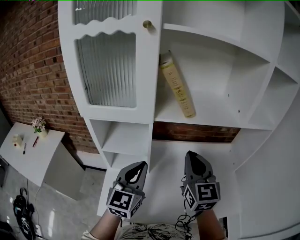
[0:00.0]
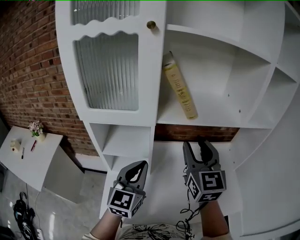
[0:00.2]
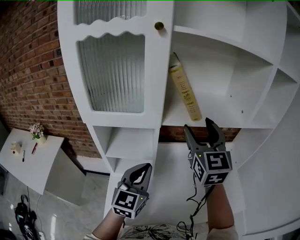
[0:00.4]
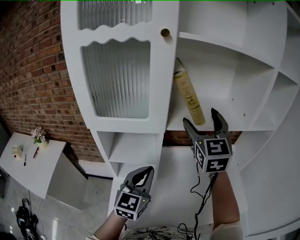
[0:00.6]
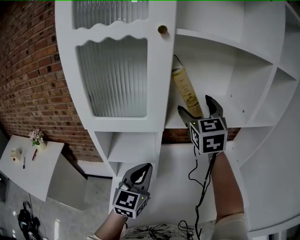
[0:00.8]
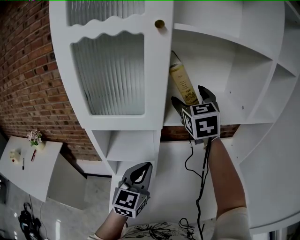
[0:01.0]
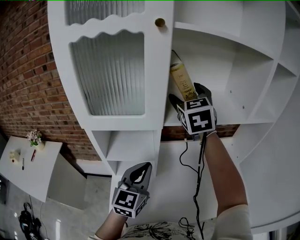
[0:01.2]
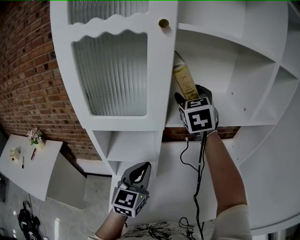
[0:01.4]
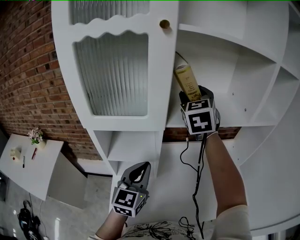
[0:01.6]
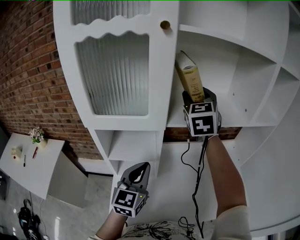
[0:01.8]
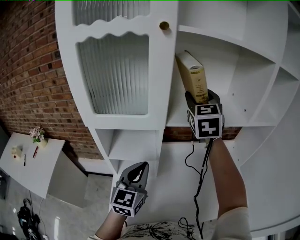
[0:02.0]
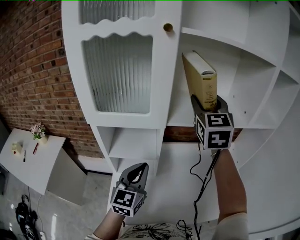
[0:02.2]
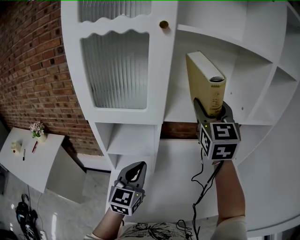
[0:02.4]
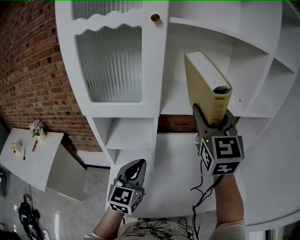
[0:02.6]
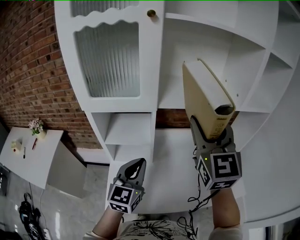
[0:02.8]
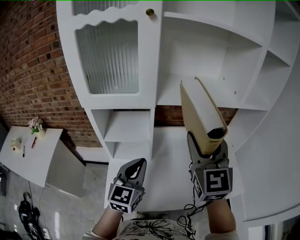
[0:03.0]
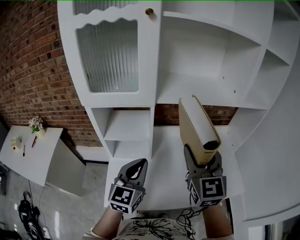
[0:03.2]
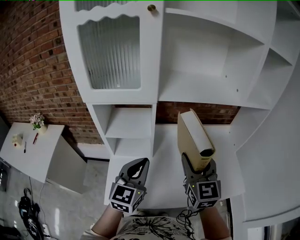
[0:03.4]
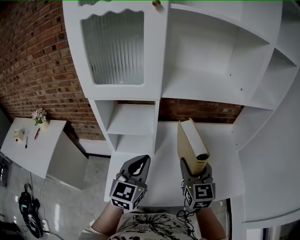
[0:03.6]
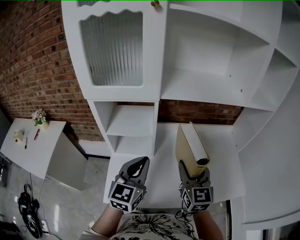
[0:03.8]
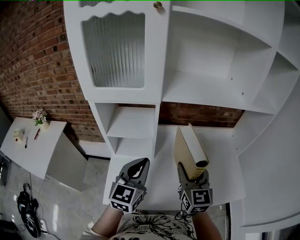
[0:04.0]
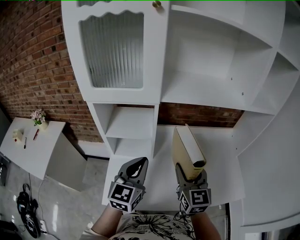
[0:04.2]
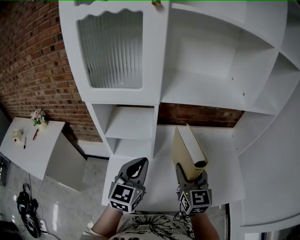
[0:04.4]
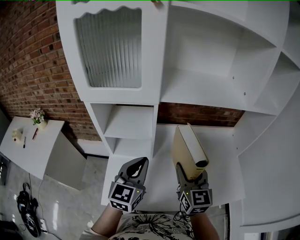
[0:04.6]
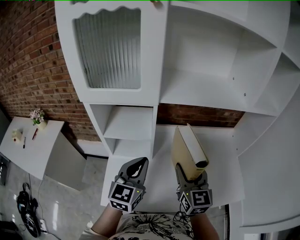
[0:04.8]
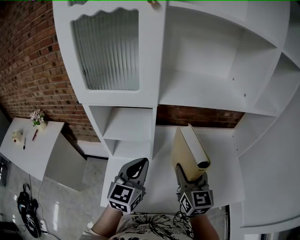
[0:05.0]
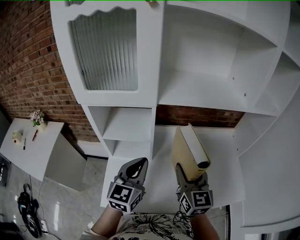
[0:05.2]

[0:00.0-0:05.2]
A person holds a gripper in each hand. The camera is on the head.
0:00.0 to 0:01.8: The left gripper ends up some 5 cm from where it was. Meanwhile the right gripper heads forward and upward, covering roughly 25 cm, rotates approximately 20 degrees, and opens.
0:01.8 to 0:03.4: The left gripper shifts about 10 cm backward, while the right gripper moves backward and downward, approximately 30 cm.
0:03.4 to 0:05.2: The right gripper travels downward by some 5 cm.

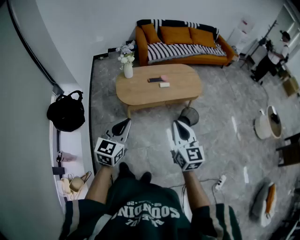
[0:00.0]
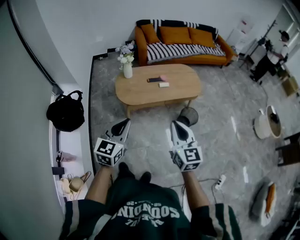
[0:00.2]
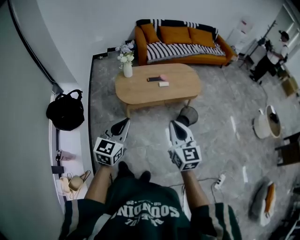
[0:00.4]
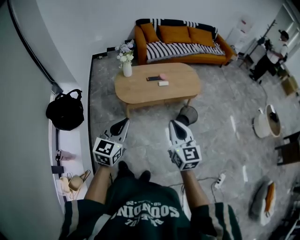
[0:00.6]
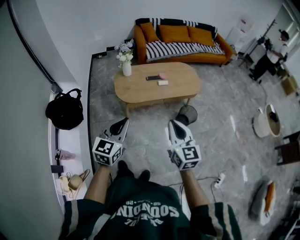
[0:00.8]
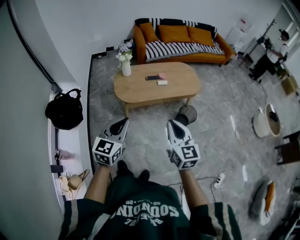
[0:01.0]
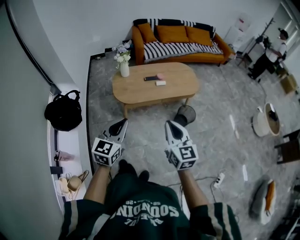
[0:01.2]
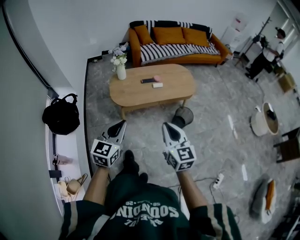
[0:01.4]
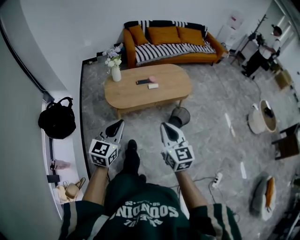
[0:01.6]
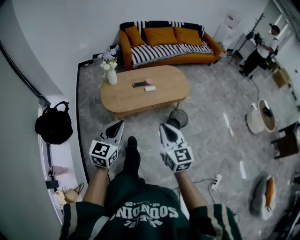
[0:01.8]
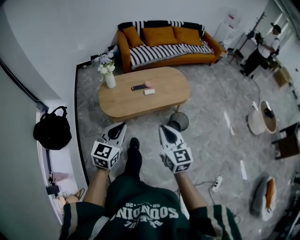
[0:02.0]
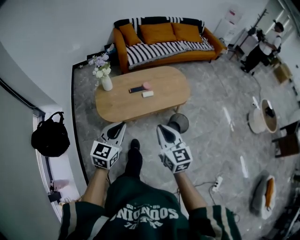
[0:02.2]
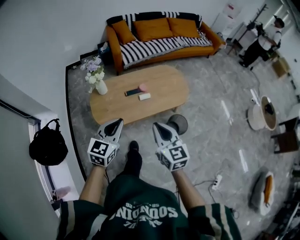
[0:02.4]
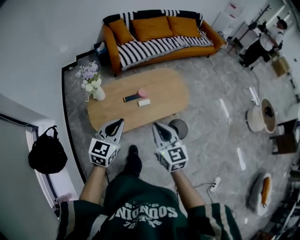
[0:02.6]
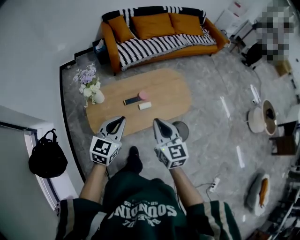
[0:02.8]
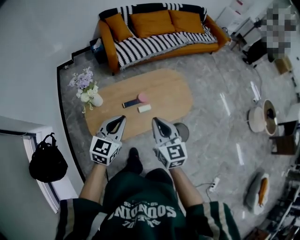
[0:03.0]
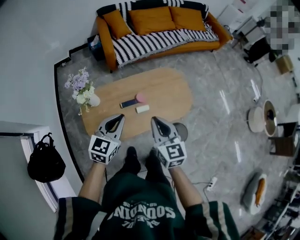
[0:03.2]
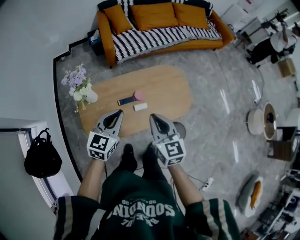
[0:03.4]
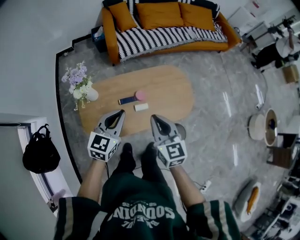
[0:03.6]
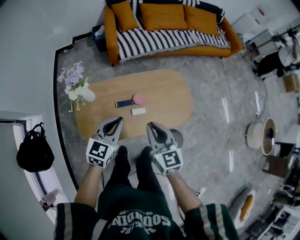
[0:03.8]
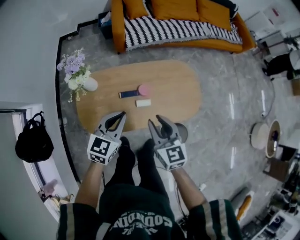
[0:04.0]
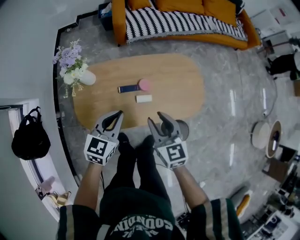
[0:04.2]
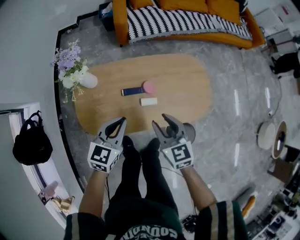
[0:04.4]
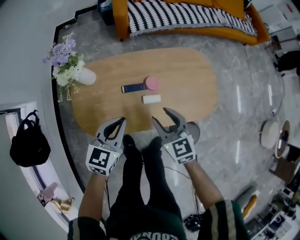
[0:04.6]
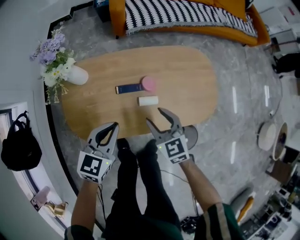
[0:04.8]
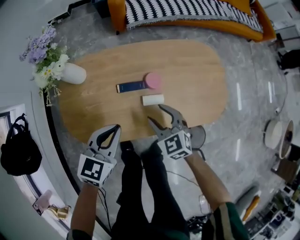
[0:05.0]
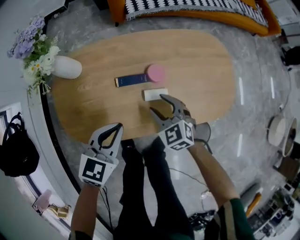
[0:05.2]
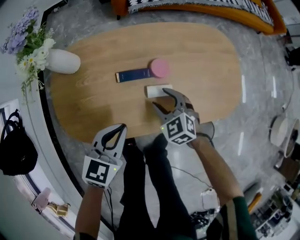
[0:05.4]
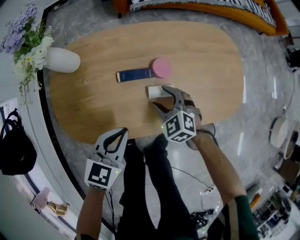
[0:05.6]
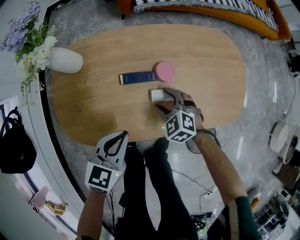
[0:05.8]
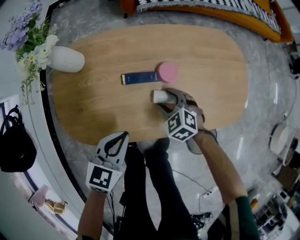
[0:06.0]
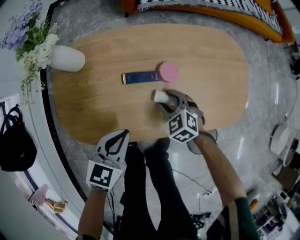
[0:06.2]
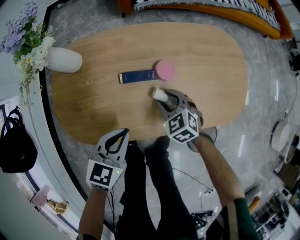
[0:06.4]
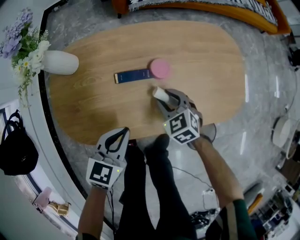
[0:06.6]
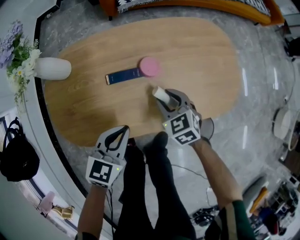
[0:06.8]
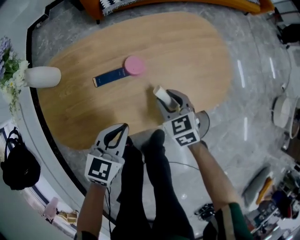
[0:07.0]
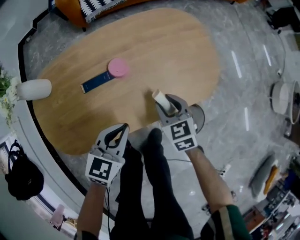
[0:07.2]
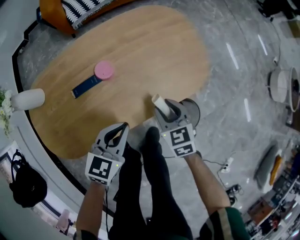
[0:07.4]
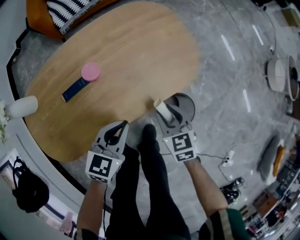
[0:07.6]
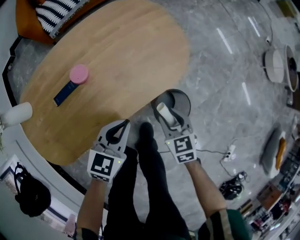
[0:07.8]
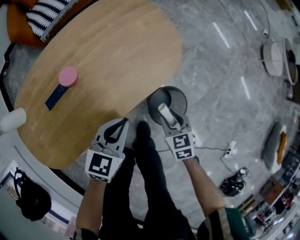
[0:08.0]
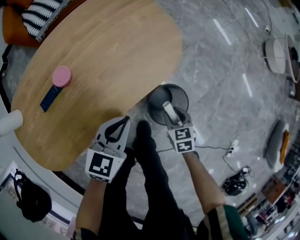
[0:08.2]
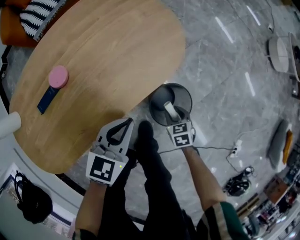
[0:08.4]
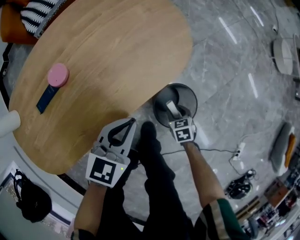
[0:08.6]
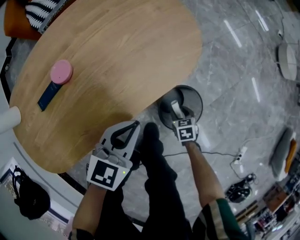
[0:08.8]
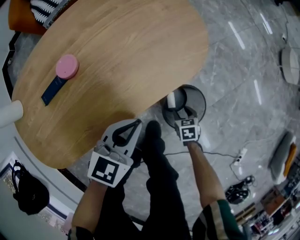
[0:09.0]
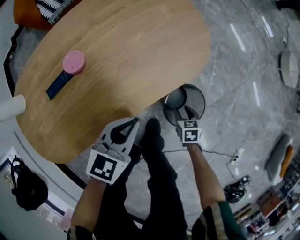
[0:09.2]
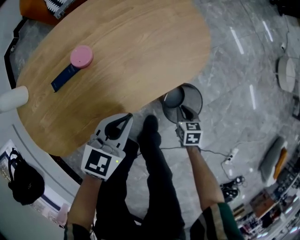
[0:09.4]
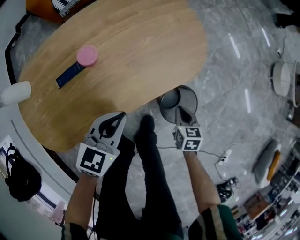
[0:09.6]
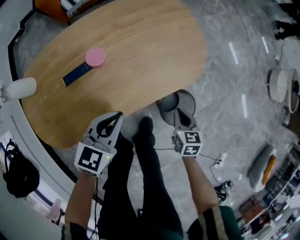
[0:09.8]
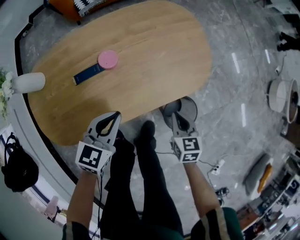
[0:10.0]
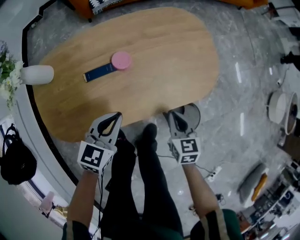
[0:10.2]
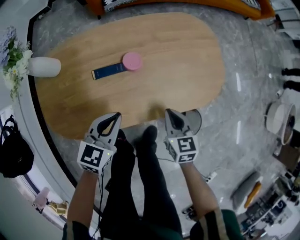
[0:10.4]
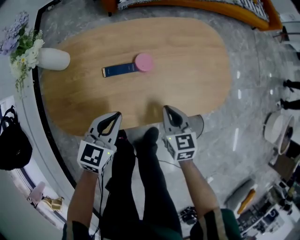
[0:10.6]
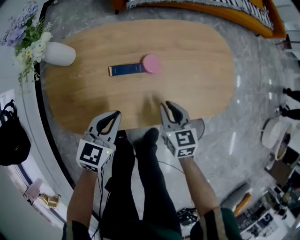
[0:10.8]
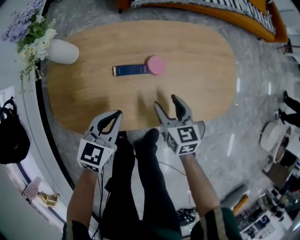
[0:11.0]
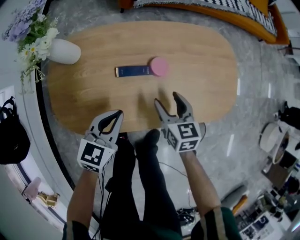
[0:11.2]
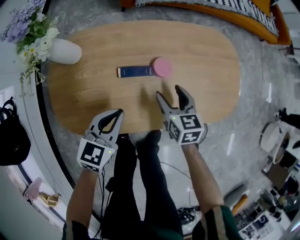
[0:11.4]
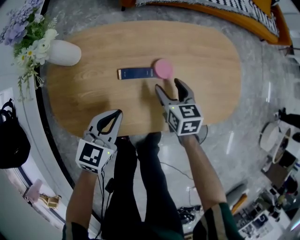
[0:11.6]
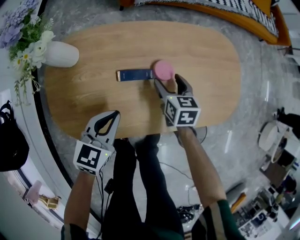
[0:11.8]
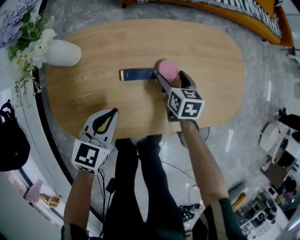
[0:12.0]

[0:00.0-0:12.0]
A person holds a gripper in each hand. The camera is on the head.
0:00.0 to 0:01.6: The grippers move only a little.
0:01.6 to 0:03.0: Both grippers are carried forward, roughly 50 cm.
0:03.0 to 0:04.4: The left gripper travels downward by some 20 cm; the right gripper is displaced downward and forward by roughly 20 cm, turns by about 20 degrees, and opens up.
0:04.4 to 0:06.0: The right gripper moves downward, some 35 cm, and swivels some 40 degrees. Meanwhile the left gripper heads downward, covering approximately 20 cm.
0:06.0 to 0:07.6: The right gripper ends up about 25 cm from where it was, and rolls clockwise, seen from behind, by some 50 degrees, while the left gripper changes place by roughly 20 cm, and rotates approximately 30 degrees.
0:07.6 to 0:09.0: The right gripper travels downward and to the right by about 35 cm, and changes its angle by some 30 degrees, while the left gripper heads to the right and downward, covering roughly 10 cm.
0:09.0 to 0:10.4: The left gripper changes place by some 25 cm, and turns by some 30 degrees. The right gripper shifts about 30 cm upward, swivels some 30 degrees, and closes its fingers.
0:10.4 to 0:12.0: The left gripper goes approximately 15 cm to the left; the right gripper is displaced forward, to the left and downward by approximately 25 cm, and opens up.

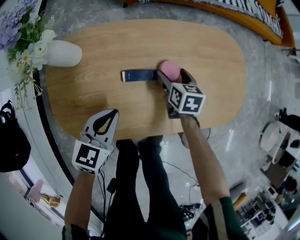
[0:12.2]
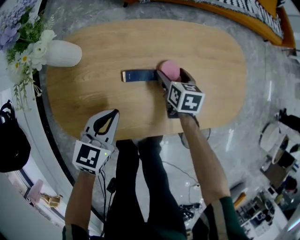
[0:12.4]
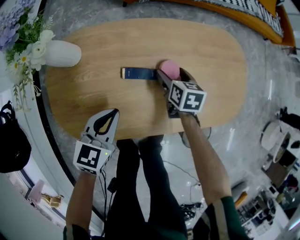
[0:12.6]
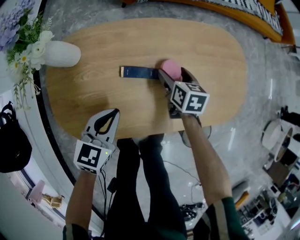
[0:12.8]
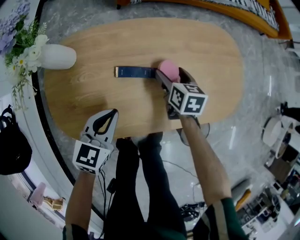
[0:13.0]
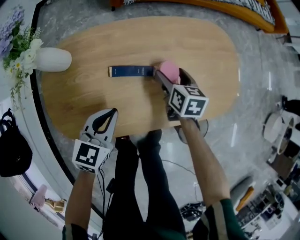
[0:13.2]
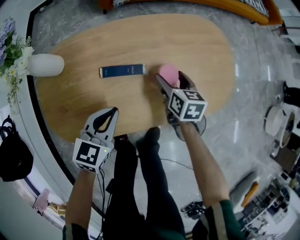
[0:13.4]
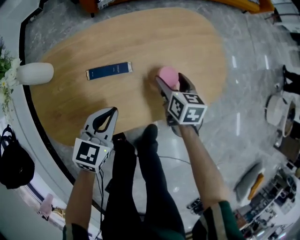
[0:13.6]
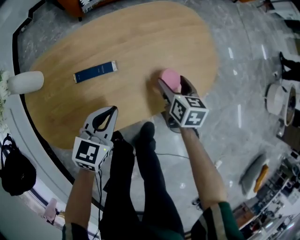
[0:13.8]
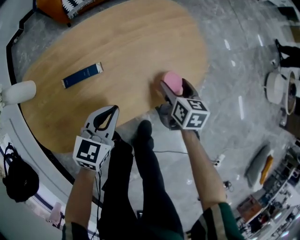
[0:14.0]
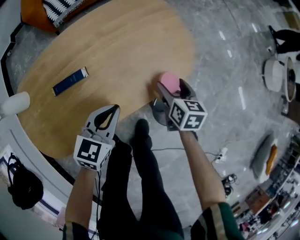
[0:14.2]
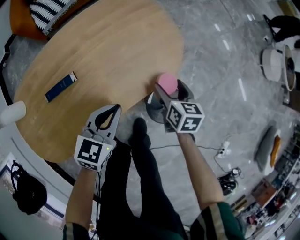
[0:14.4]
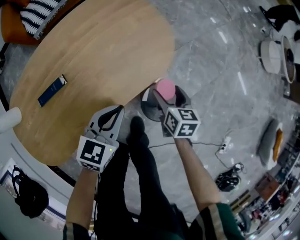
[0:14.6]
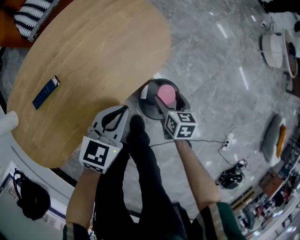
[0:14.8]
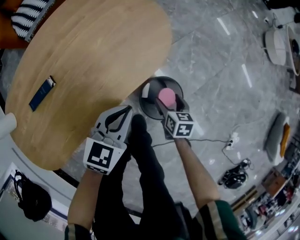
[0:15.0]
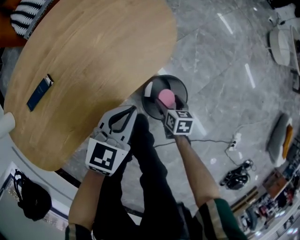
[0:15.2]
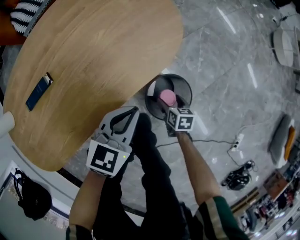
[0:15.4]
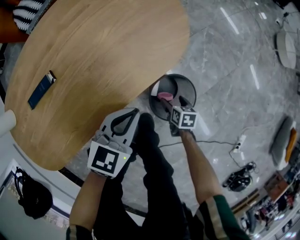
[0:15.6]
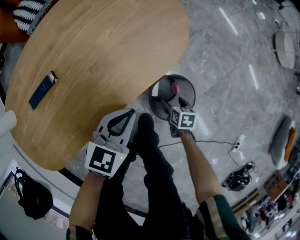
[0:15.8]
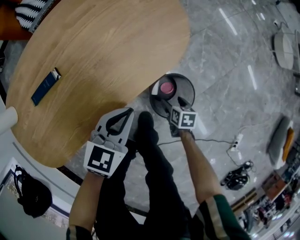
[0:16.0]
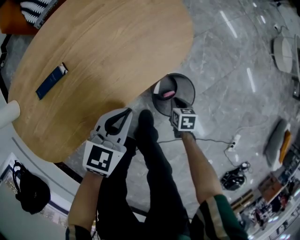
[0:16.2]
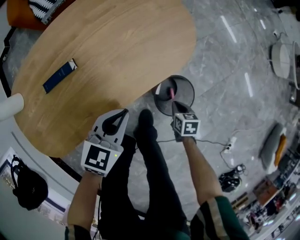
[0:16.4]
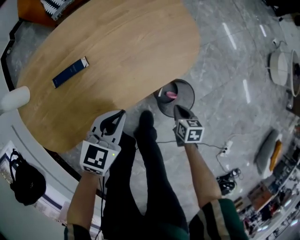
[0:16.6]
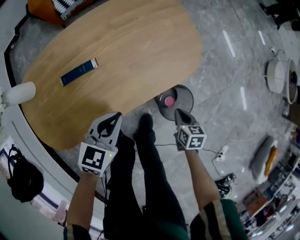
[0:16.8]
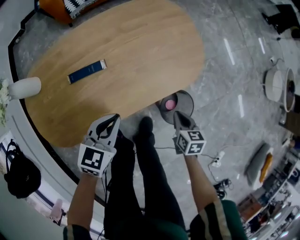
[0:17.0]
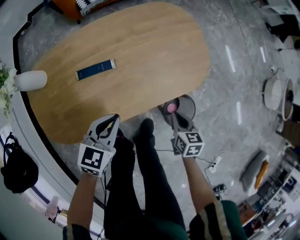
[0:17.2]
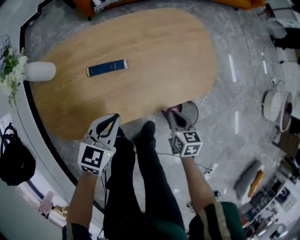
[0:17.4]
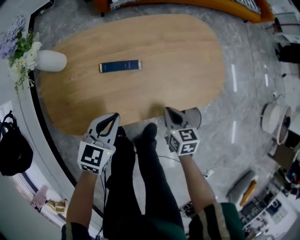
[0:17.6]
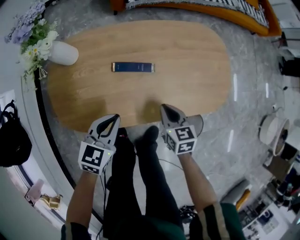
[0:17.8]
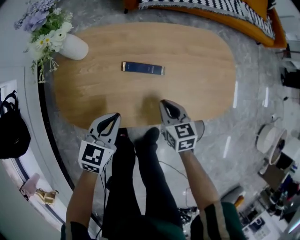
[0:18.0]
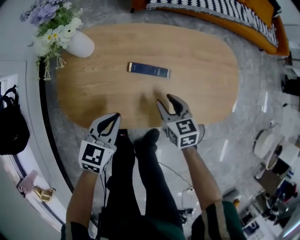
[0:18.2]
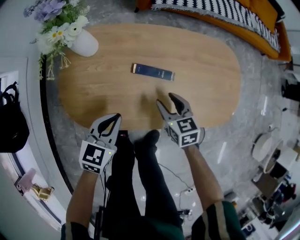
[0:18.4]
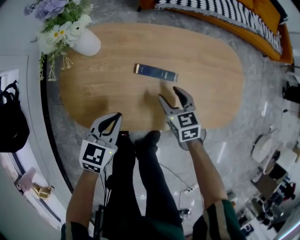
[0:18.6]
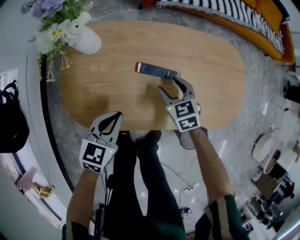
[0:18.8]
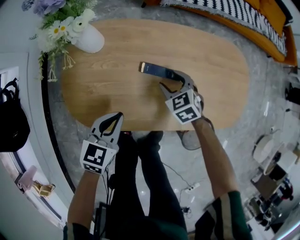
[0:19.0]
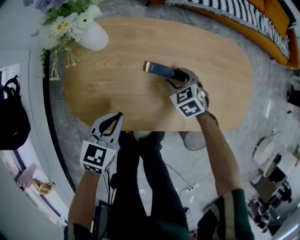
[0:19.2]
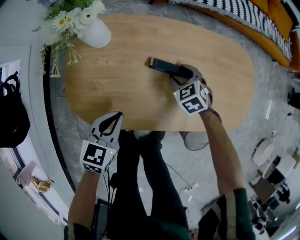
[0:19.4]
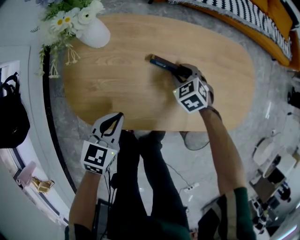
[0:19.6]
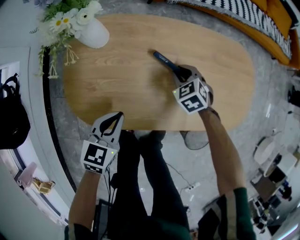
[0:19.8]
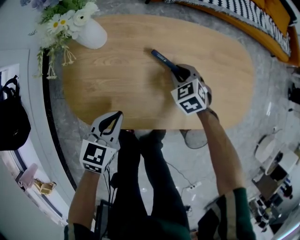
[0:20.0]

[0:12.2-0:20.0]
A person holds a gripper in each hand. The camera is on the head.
0:12.2 to 0:13.8: The right gripper is displaced to the right and backward by some 20 cm. The left gripper is displaced to the right by approximately 15 cm.
0:13.8 to 0:15.4: The left gripper goes about 25 cm to the right, and rotates roughly 20 degrees. The right gripper shifts roughly 40 cm to the right, downward and backward, and rotates some 20 degrees.
0:15.4 to 0:16.8: The right gripper heads upward, covering approximately 20 cm, and closes its fingers. The left gripper heads to the left and upward, covering approximately 20 cm.
0:16.8 to 0:18.4: The right gripper moves some 40 cm, rolls counterclockwise, seen from behind, by some 40 degrees, and opens; the left gripper moves approximately 25 cm, and turns by roughly 30 degrees.
0:18.4 to 0:20.0: The right gripper goes roughly 10 cm forward and downward, and changes its angle by about 40 degrees.
